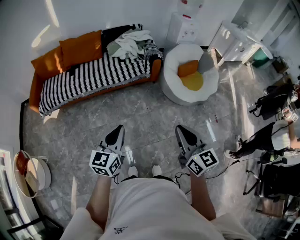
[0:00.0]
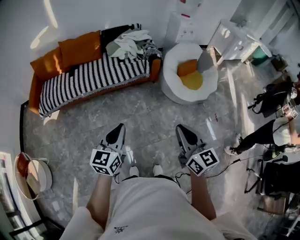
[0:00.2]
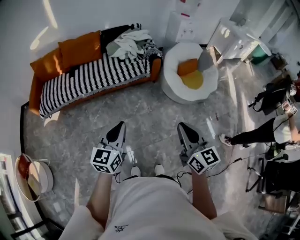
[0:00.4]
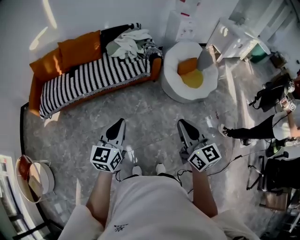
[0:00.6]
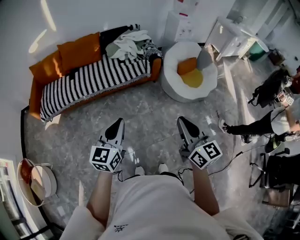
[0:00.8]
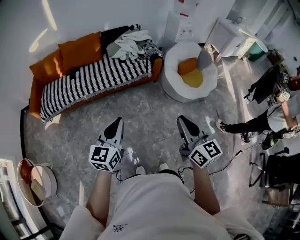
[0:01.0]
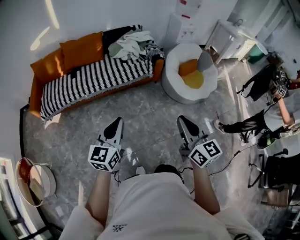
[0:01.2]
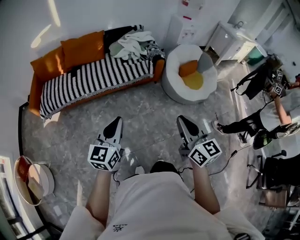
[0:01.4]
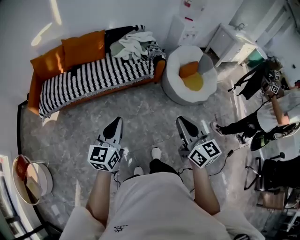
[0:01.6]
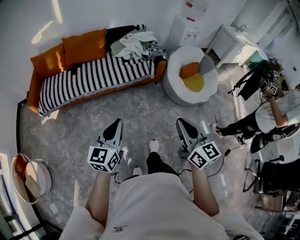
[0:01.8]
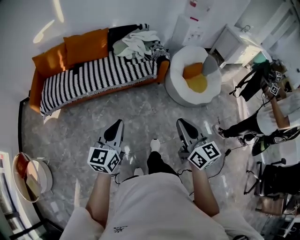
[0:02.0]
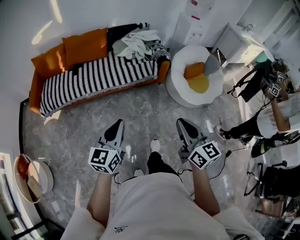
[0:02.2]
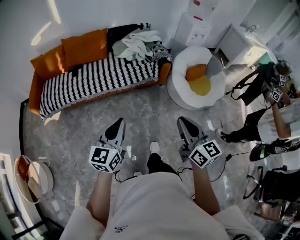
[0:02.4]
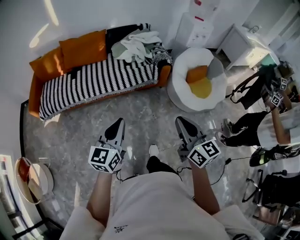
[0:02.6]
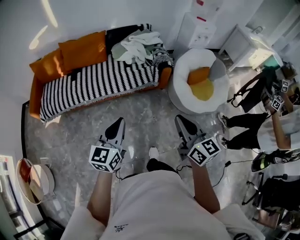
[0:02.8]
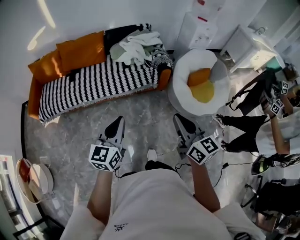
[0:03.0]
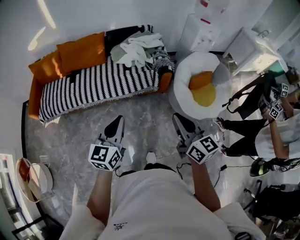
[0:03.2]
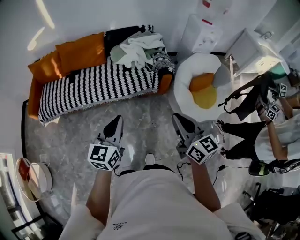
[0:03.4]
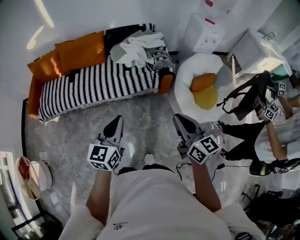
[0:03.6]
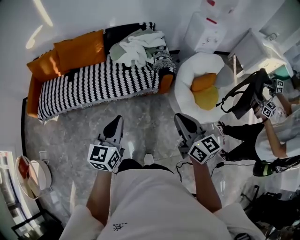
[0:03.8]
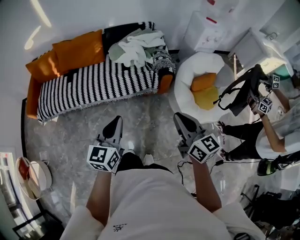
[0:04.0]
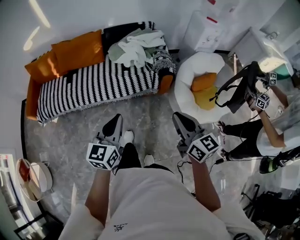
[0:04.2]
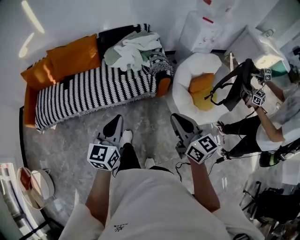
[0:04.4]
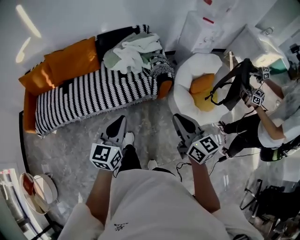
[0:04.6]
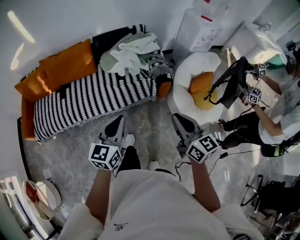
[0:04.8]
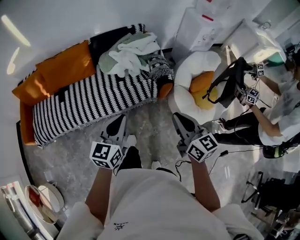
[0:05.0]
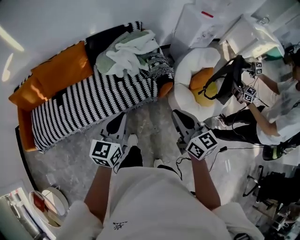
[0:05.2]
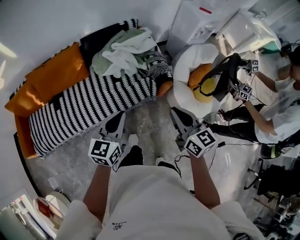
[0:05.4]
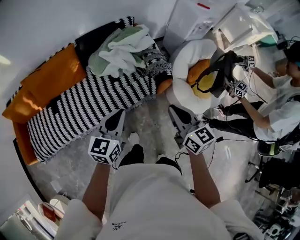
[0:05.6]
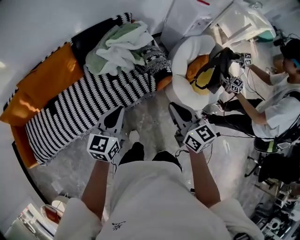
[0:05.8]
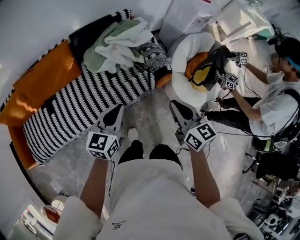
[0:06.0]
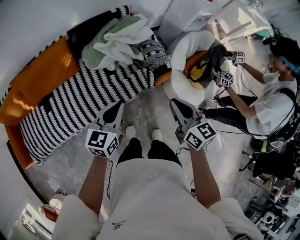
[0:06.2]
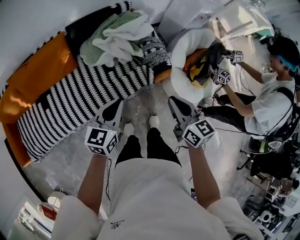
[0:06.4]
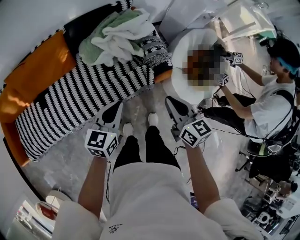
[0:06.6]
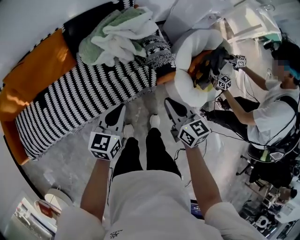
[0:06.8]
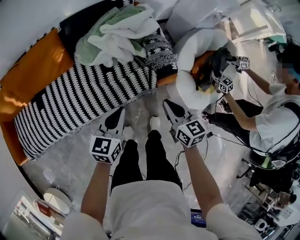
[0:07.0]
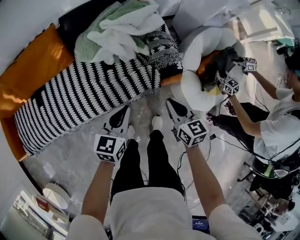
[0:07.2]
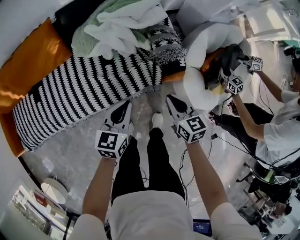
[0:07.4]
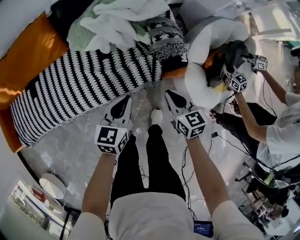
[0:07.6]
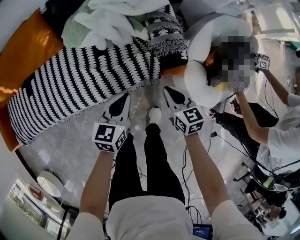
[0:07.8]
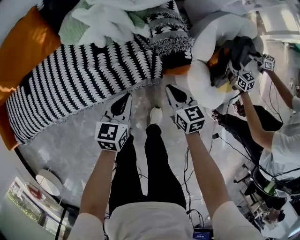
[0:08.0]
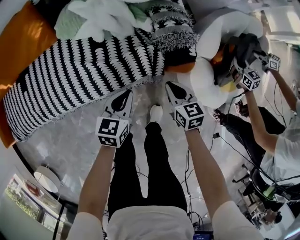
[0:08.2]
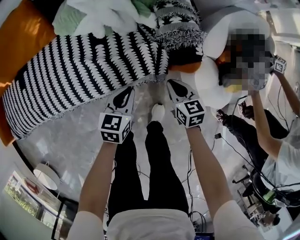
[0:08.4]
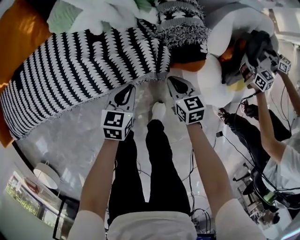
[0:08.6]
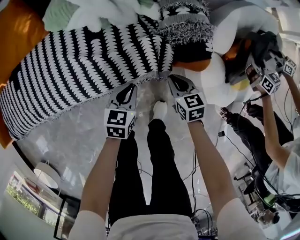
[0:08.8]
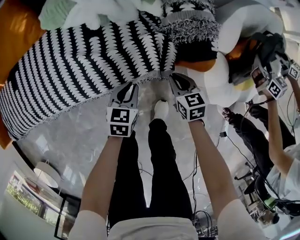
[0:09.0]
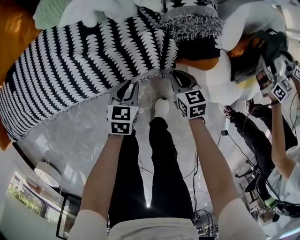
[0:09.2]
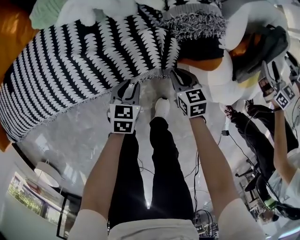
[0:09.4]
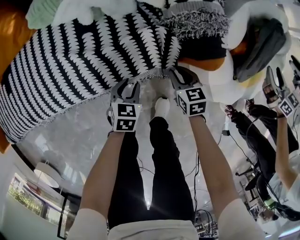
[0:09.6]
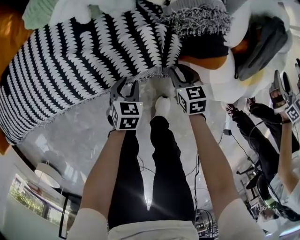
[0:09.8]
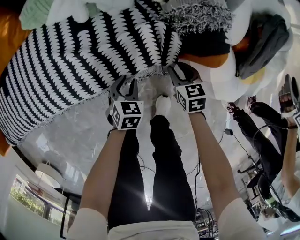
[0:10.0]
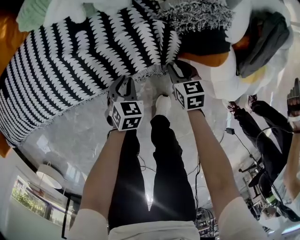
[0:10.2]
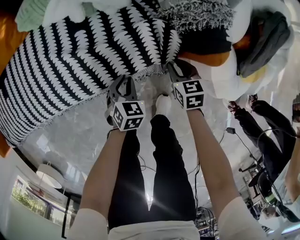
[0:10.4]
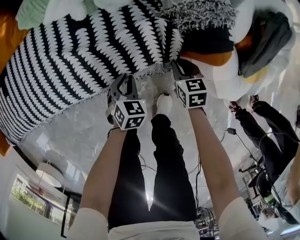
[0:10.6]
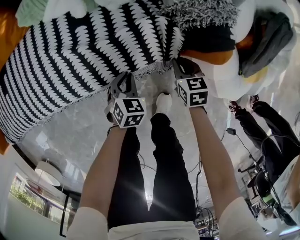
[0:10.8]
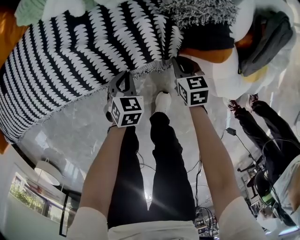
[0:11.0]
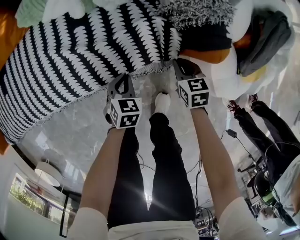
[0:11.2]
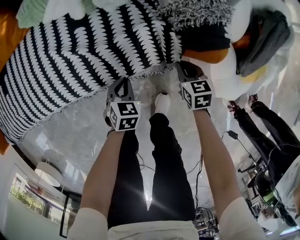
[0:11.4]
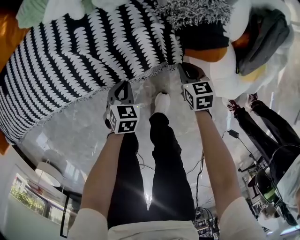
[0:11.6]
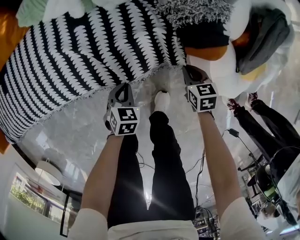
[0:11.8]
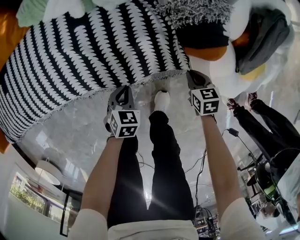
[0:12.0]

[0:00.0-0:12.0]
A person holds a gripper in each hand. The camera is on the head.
0:00.0 to 0:01.6: Both grippers move to the left, approximately 10 cm.
0:01.6 to 0:03.0: The right gripper heads forward, covering some 25 cm; the left gripper moves forward and to the right, about 25 cm.
0:03.0 to 0:04.4: The two grippers go approximately 15 cm forward.
0:04.4 to 0:06.0: The right gripper is displaced forward and to the left by approximately 25 cm. The left gripper travels forward by roughly 25 cm, and swivels some 20 degrees.
0:06.0 to 0:07.6: The left gripper goes approximately 25 cm downward and to the right; the right gripper moves downward, roughly 30 cm.
0:07.6 to 0:09.0: The grippers both shift downward by about 25 cm.
0:09.0 to 0:10.4: The grippers both shift downward by approximately 10 cm. The left gripper changes its angle by about 30 degrees.
0:10.4 to 0:12.0: The right gripper goes roughly 10 cm backward and to the right; the left gripper heads backward, covering roughly 5 cm.

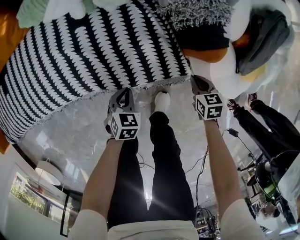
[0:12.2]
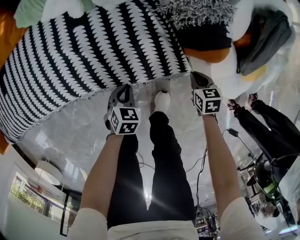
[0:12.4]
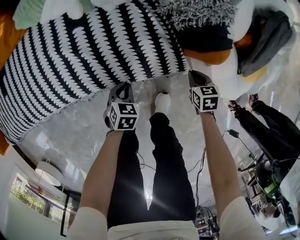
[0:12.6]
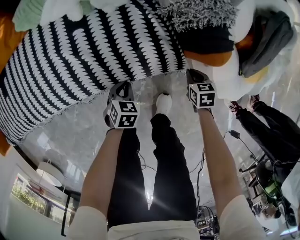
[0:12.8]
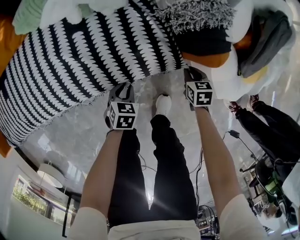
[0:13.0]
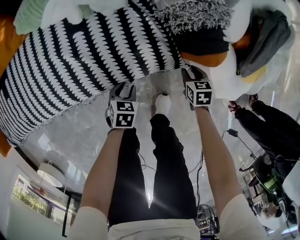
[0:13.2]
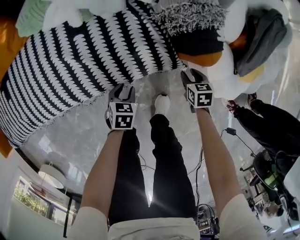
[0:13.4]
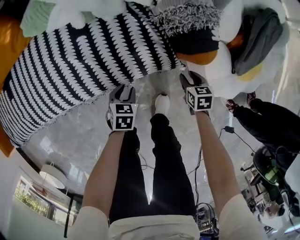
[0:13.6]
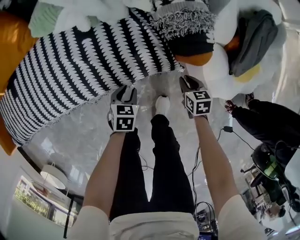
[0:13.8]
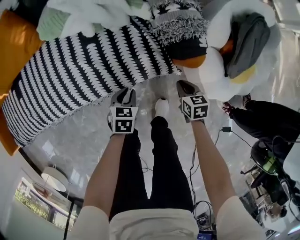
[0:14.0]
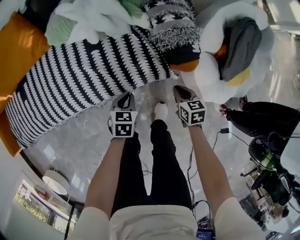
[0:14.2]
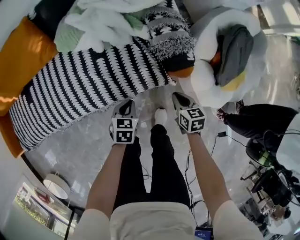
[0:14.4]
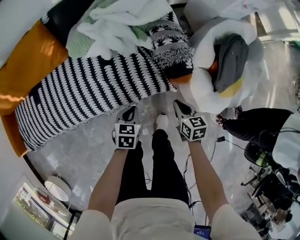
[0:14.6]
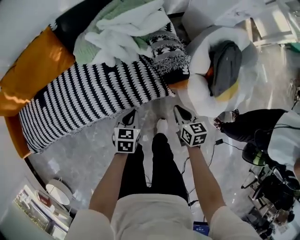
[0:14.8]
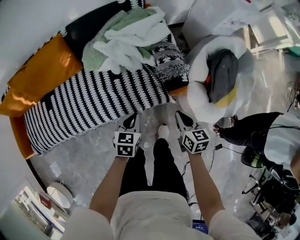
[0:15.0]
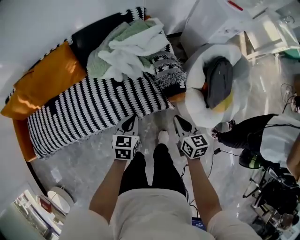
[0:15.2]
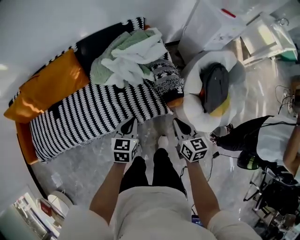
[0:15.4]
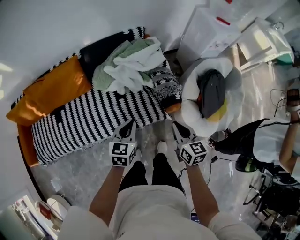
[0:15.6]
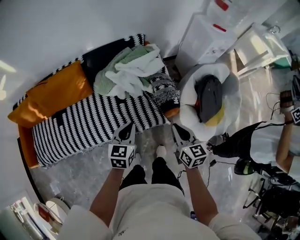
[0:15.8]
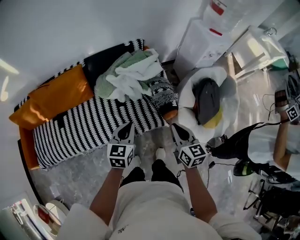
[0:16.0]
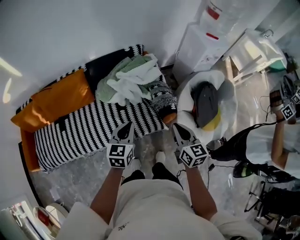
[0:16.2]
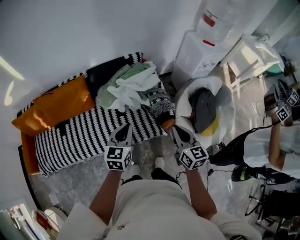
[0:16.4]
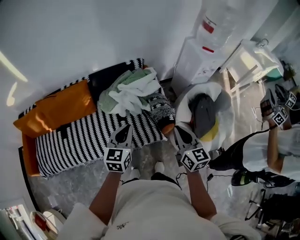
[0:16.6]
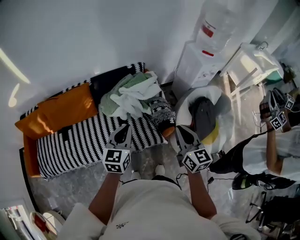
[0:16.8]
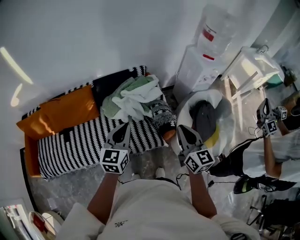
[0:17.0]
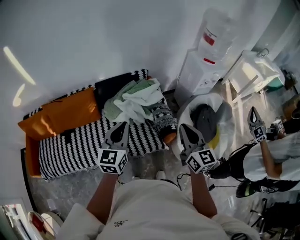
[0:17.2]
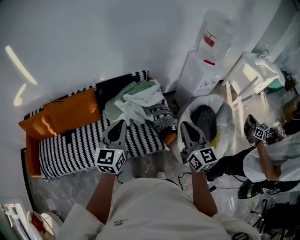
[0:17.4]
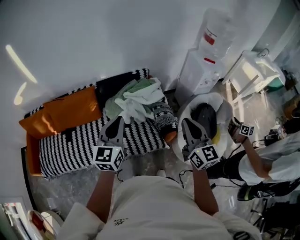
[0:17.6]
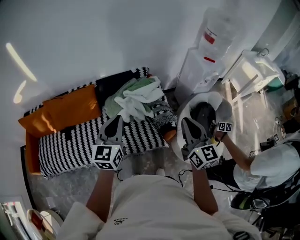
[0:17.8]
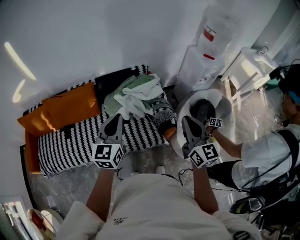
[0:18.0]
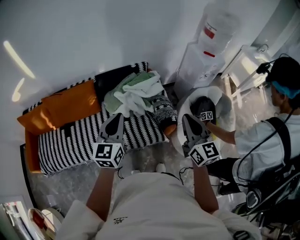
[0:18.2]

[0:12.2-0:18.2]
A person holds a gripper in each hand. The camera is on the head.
0:12.2 to 0:13.8: The right gripper opens and closes again; the left gripper opens.
0:13.8 to 0:15.2: The grippers both shift upward by approximately 40 cm. The left gripper rotates approximately 20 degrees, and closes up. The right gripper turns by approximately 30 degrees.
0:15.2 to 0:16.6: The grippers both shift upward by roughly 25 cm. The right gripper turns by approximately 20 degrees; the left gripper turns by roughly 20 degrees.
0:16.6 to 0:18.2: The left gripper is displaced upward and to the left by roughly 10 cm. The right gripper travels upward by about 10 cm.

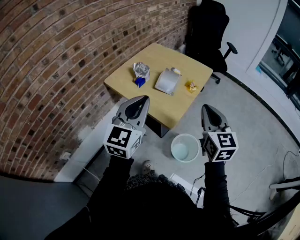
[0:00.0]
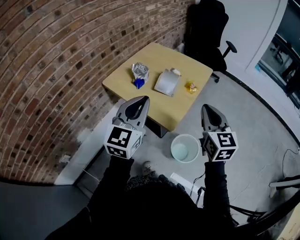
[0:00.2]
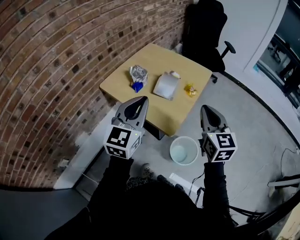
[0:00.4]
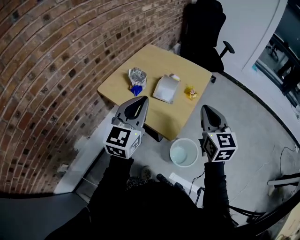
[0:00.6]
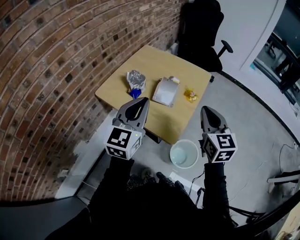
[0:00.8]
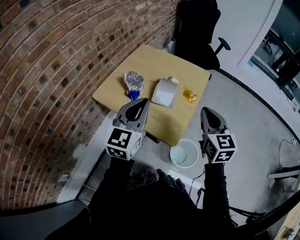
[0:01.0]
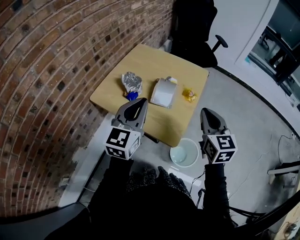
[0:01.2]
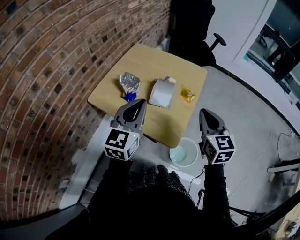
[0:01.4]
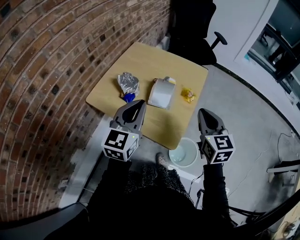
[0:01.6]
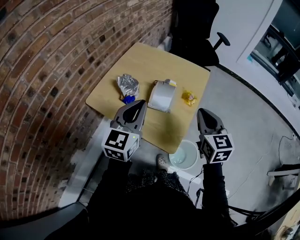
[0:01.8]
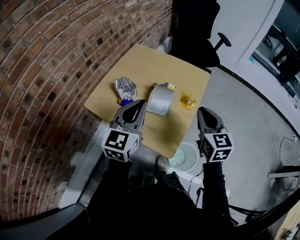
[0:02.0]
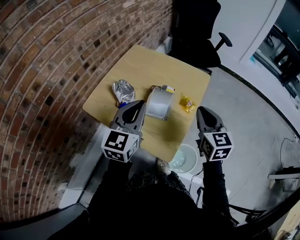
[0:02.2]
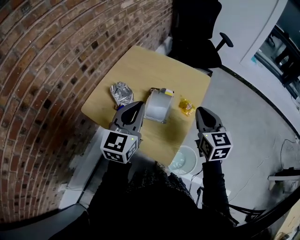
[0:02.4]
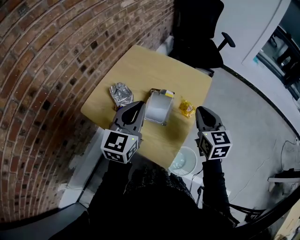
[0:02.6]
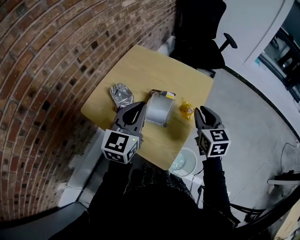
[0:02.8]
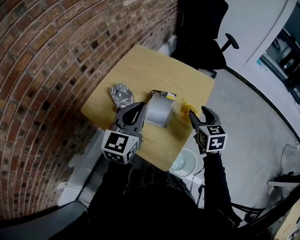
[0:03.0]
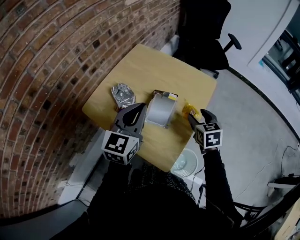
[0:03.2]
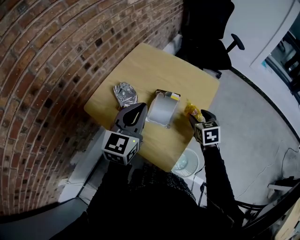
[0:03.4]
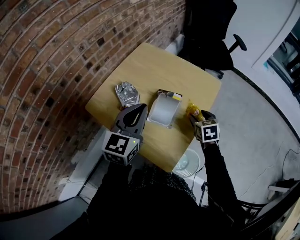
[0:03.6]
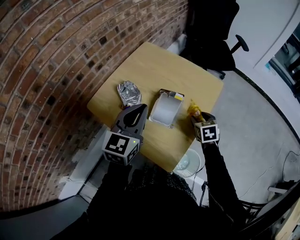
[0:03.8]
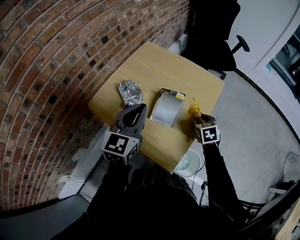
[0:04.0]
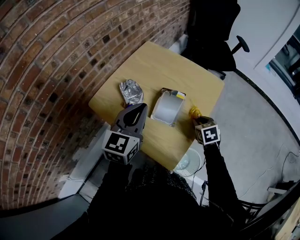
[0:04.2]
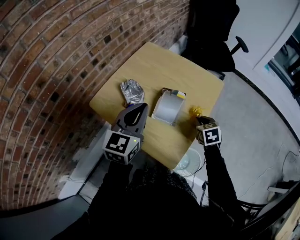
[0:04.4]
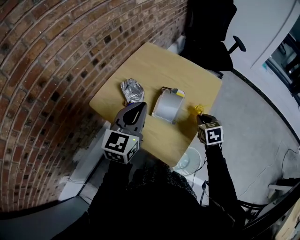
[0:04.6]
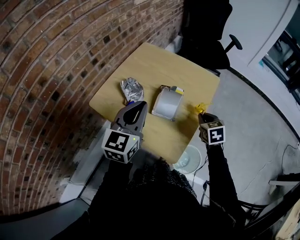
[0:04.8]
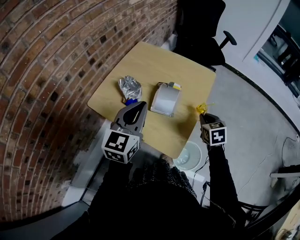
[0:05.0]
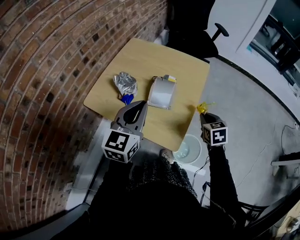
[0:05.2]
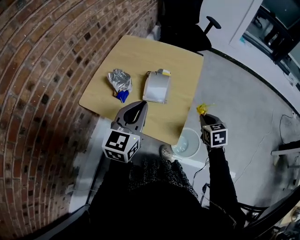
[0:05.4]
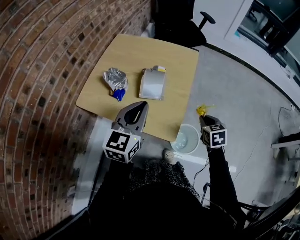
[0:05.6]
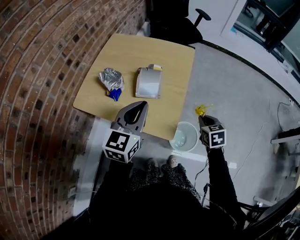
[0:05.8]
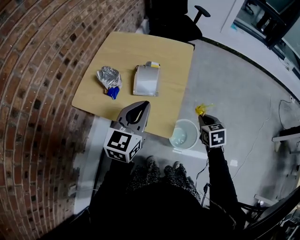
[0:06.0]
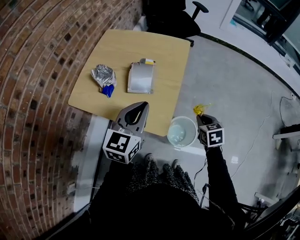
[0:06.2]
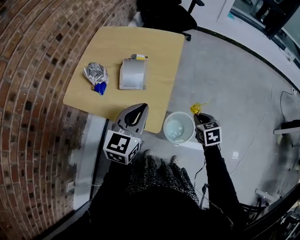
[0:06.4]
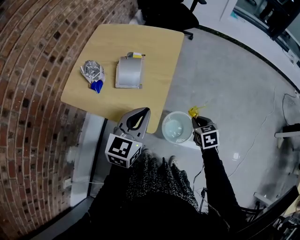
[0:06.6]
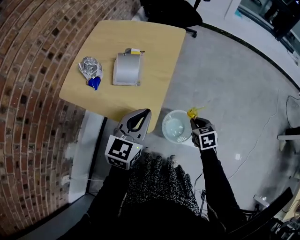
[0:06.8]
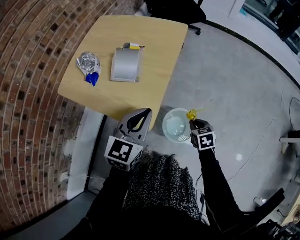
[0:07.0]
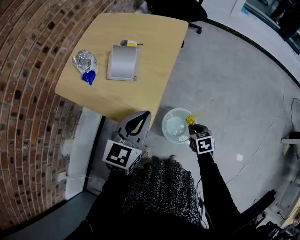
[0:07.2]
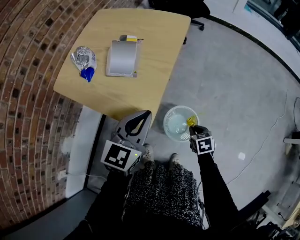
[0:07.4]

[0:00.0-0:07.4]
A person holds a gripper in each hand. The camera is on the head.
0:00.0 to 0:01.4: Both grippers move forward, about 15 cm.
0:01.4 to 0:03.0: The right gripper travels forward and downward by some 20 cm, and opens up. Meanwhile the left gripper heads forward, covering some 10 cm.
0:03.0 to 0:04.4: The right gripper shifts some 10 cm downward, changes its angle by some 20 degrees, and closes.
0:04.4 to 0:06.0: The left gripper is displaced backward and to the right by some 10 cm; the right gripper goes about 20 cm backward and to the right.
0:06.0 to 0:07.4: The right gripper travels downward by roughly 25 cm; the left gripper is displaced downward and to the right by about 15 cm.
